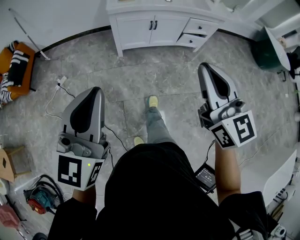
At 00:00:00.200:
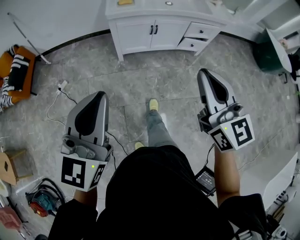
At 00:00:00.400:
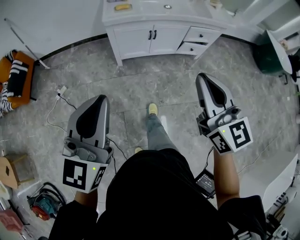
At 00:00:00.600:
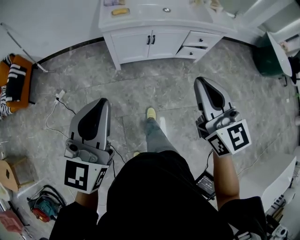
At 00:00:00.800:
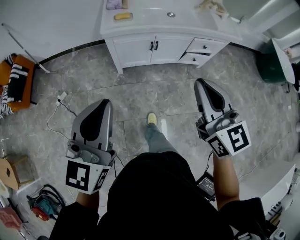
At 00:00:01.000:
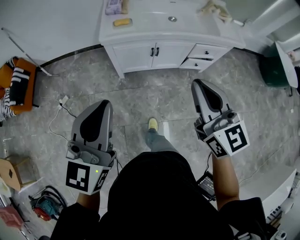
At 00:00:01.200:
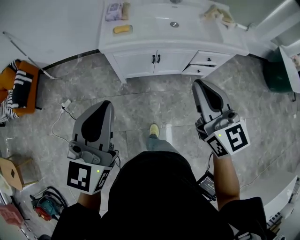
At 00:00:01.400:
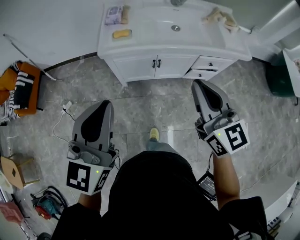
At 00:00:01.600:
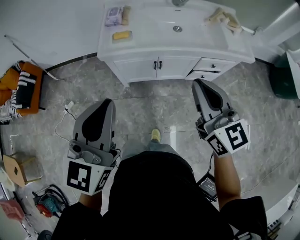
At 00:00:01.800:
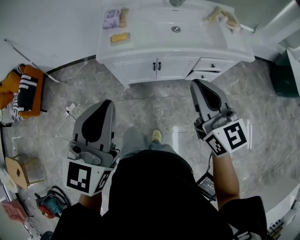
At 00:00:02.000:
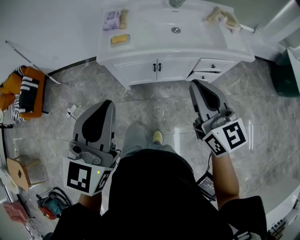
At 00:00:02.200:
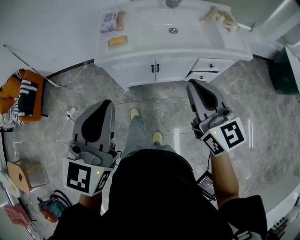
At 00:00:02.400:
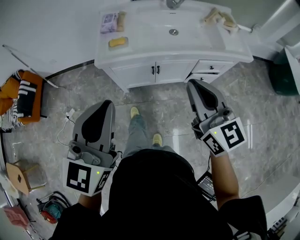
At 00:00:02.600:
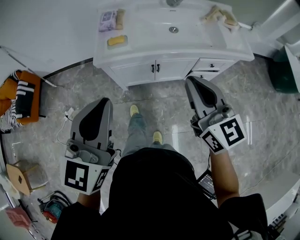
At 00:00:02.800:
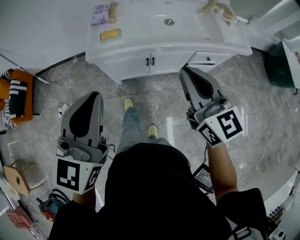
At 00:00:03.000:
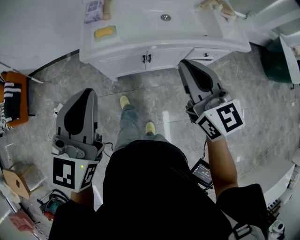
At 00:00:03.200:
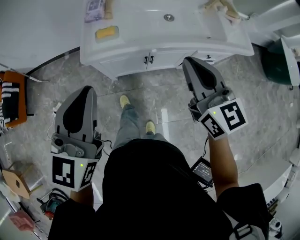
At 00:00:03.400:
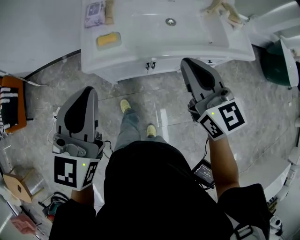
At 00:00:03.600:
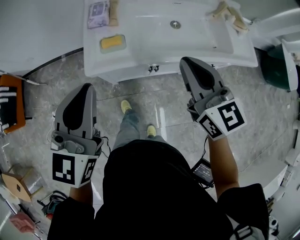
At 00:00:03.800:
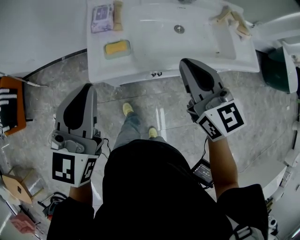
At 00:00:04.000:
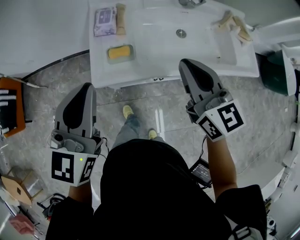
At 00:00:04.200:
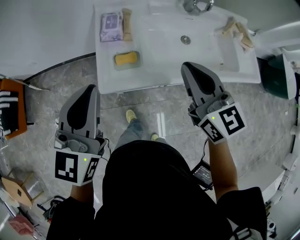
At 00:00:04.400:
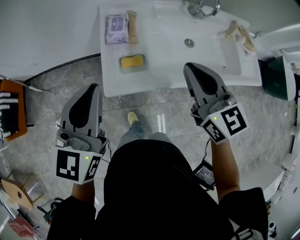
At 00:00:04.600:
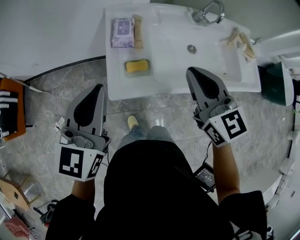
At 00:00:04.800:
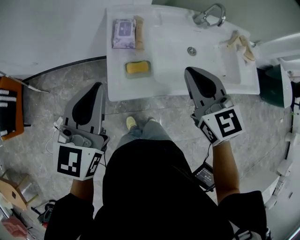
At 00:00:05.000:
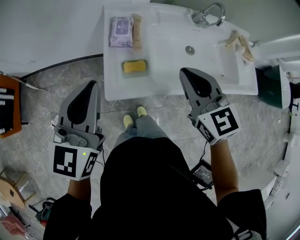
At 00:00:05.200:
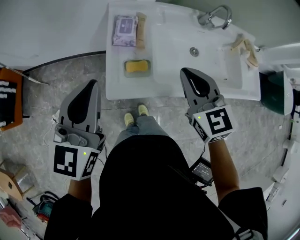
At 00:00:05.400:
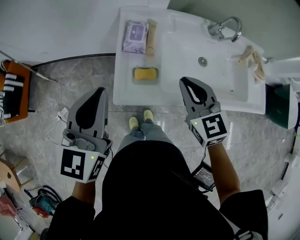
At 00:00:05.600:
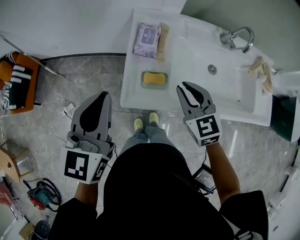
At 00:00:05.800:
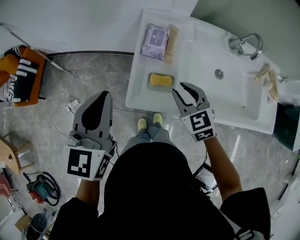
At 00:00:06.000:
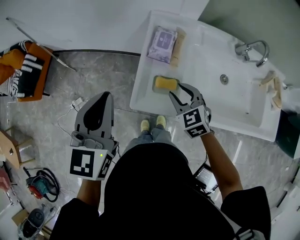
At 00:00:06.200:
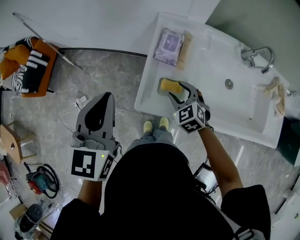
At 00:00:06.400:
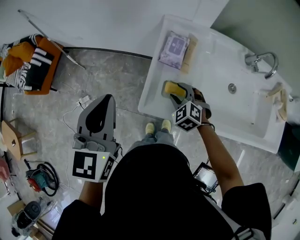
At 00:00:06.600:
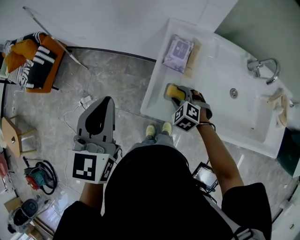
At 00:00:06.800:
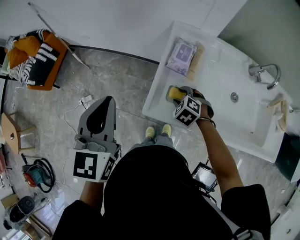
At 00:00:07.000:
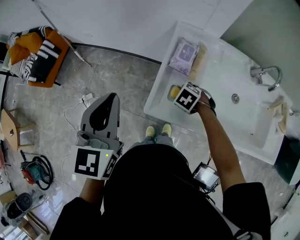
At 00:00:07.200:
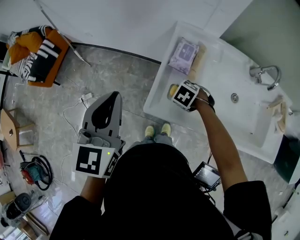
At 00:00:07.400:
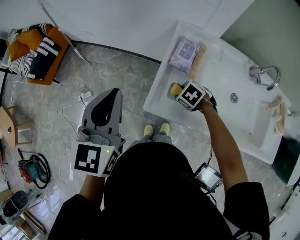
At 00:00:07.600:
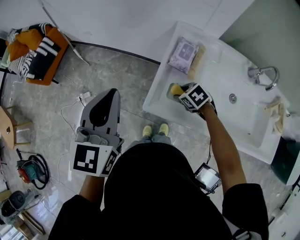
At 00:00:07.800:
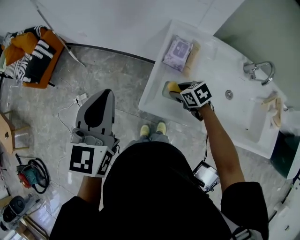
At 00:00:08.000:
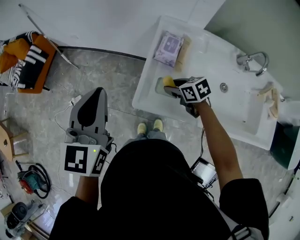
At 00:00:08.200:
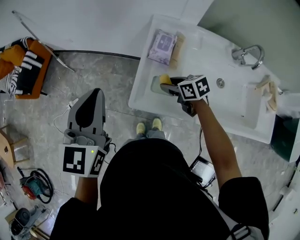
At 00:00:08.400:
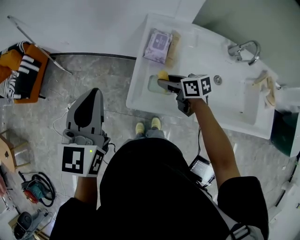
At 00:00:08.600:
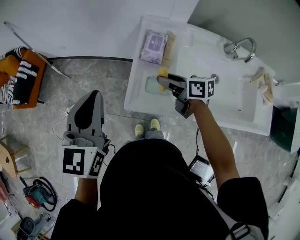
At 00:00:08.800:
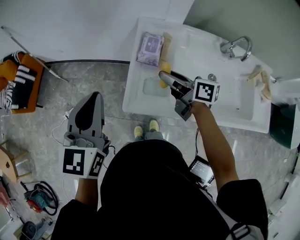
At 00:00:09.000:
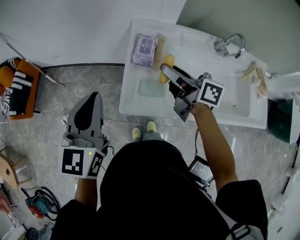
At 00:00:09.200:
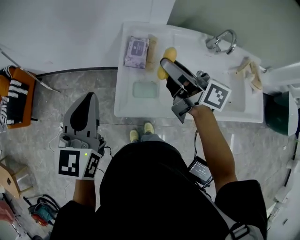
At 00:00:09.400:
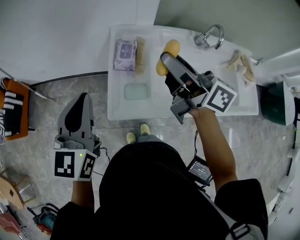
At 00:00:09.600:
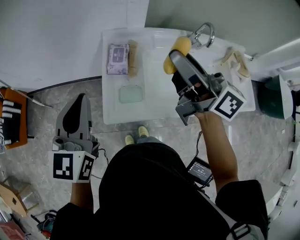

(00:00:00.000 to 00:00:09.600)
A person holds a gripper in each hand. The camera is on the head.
00:00:00.000 - 00:00:01.600: The two grippers go approximately 35 cm forward.
00:00:01.600 - 00:00:03.200: The two grippers go about 15 cm forward.
00:00:03.200 - 00:00:04.800: The two grippers go some 25 cm forward and to the left.
00:00:04.800 - 00:00:06.400: The left gripper shifts about 5 cm to the left, and swivels some 30 degrees. Meanwhile the right gripper is displaced downward by roughly 25 cm, tilts its fingers approximately 30 degrees downward, and opens up.
00:00:06.400 - 00:00:08.000: The right gripper rotates around the line of its fingers by roughly 40 degrees, clockwise from behind.
00:00:08.000 - 00:00:09.600: The left gripper moves roughly 10 cm. Meanwhile the right gripper moves upward, some 35 cm, and angles its fingers upward, by about 60 degrees.

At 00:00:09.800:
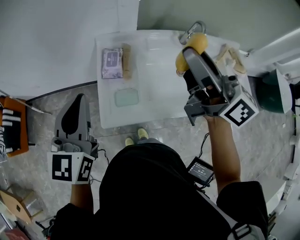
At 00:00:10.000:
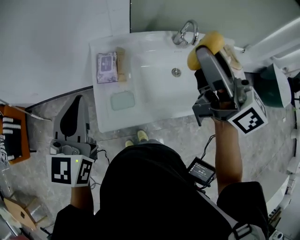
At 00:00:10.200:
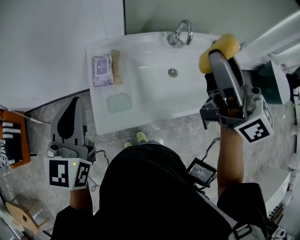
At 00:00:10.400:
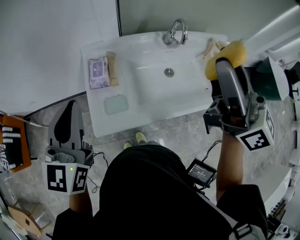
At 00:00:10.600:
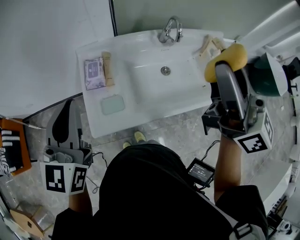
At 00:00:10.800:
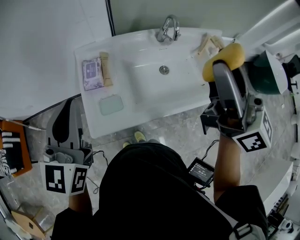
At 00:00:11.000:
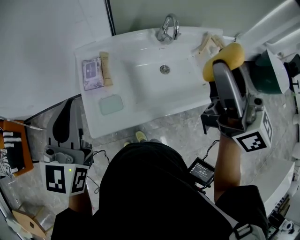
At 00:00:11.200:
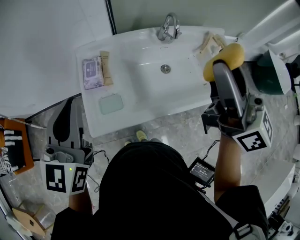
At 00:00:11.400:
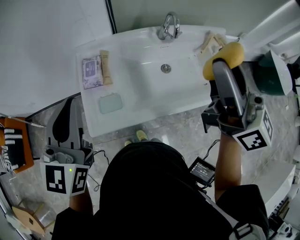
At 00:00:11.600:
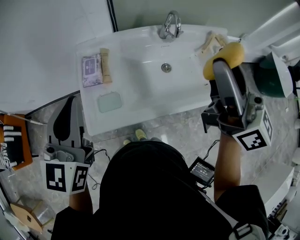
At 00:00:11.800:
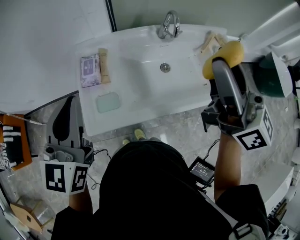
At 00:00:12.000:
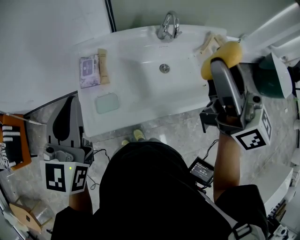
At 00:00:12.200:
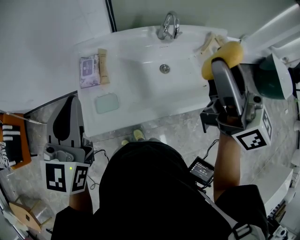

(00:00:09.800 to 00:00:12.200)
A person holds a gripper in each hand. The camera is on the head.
00:00:09.800 - 00:00:11.000: The right gripper moves to the right, backward and upward, about 15 cm, and turns by about 20 degrees, while the left gripper is displaced to the right by roughly 5 cm.
00:00:11.000 - 00:00:12.200: The grippers make only small movements.

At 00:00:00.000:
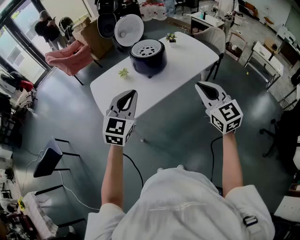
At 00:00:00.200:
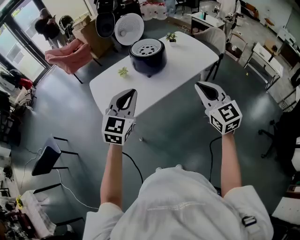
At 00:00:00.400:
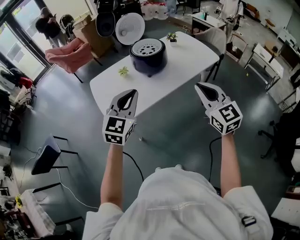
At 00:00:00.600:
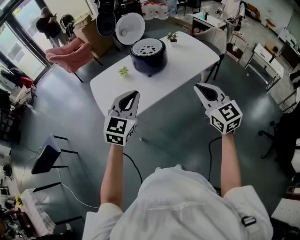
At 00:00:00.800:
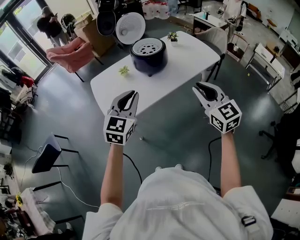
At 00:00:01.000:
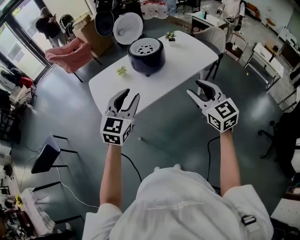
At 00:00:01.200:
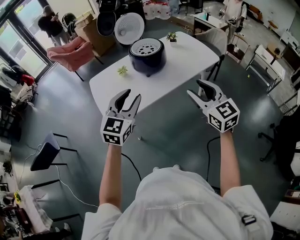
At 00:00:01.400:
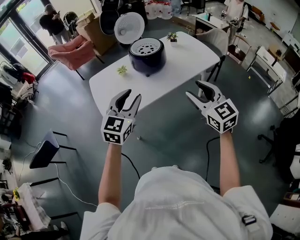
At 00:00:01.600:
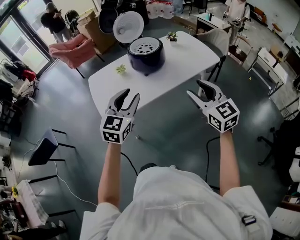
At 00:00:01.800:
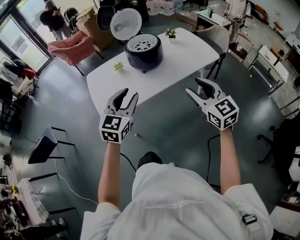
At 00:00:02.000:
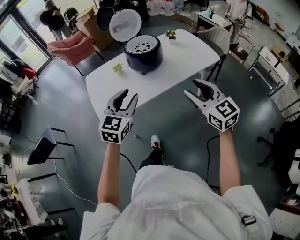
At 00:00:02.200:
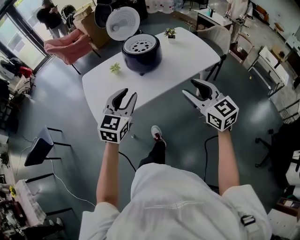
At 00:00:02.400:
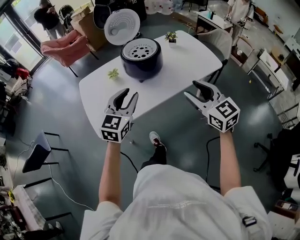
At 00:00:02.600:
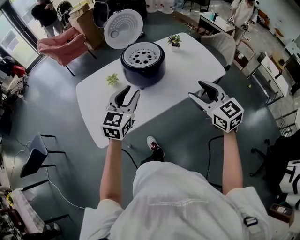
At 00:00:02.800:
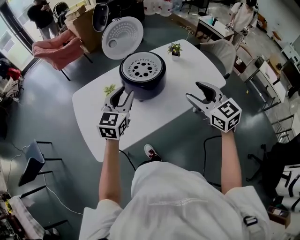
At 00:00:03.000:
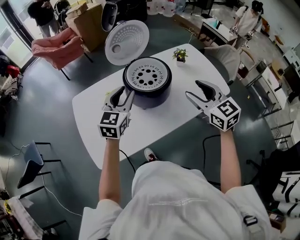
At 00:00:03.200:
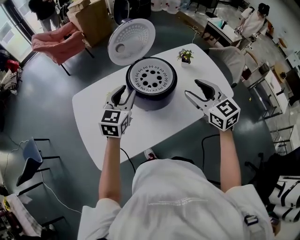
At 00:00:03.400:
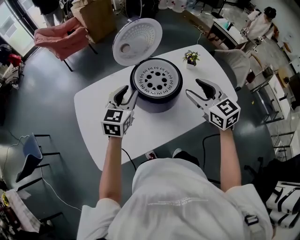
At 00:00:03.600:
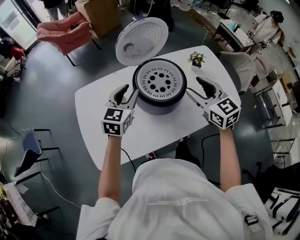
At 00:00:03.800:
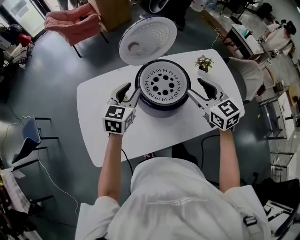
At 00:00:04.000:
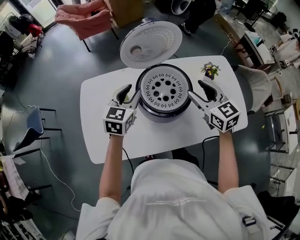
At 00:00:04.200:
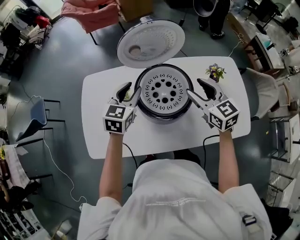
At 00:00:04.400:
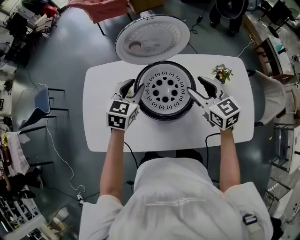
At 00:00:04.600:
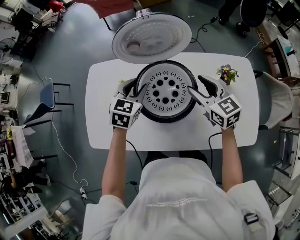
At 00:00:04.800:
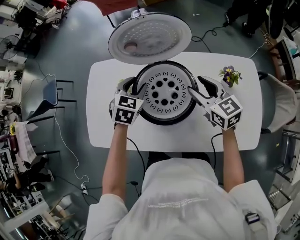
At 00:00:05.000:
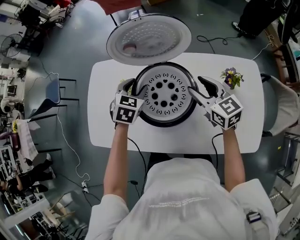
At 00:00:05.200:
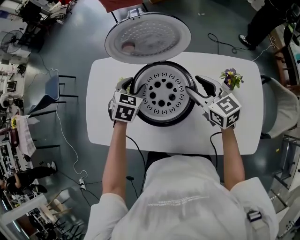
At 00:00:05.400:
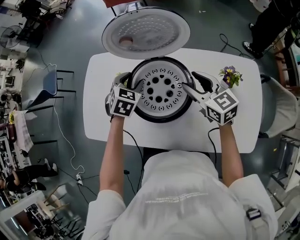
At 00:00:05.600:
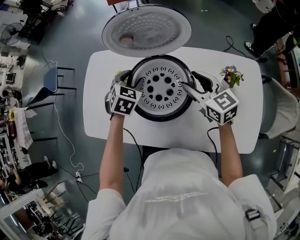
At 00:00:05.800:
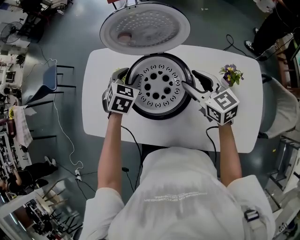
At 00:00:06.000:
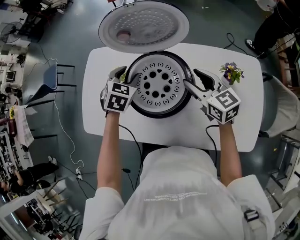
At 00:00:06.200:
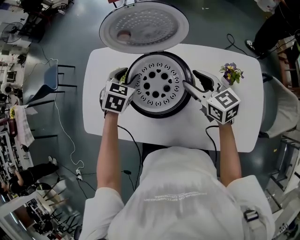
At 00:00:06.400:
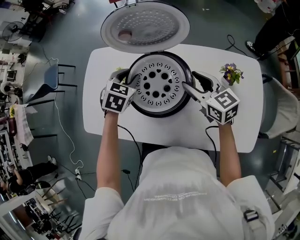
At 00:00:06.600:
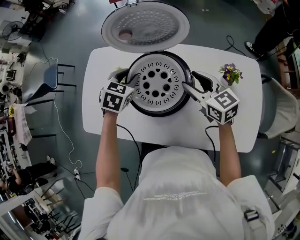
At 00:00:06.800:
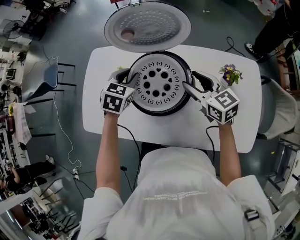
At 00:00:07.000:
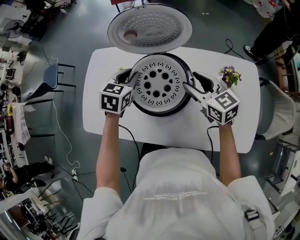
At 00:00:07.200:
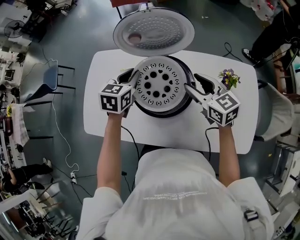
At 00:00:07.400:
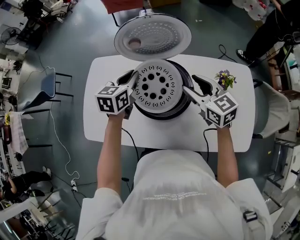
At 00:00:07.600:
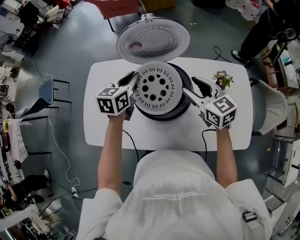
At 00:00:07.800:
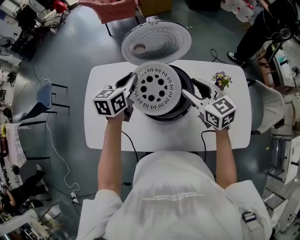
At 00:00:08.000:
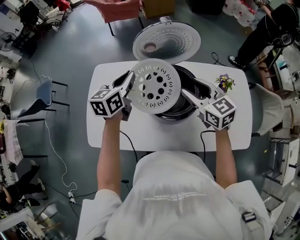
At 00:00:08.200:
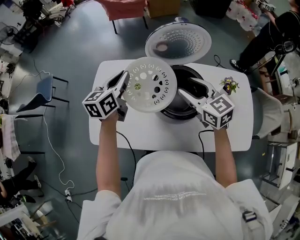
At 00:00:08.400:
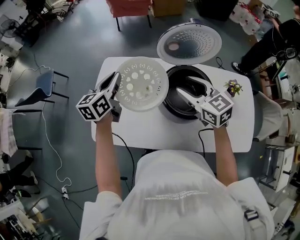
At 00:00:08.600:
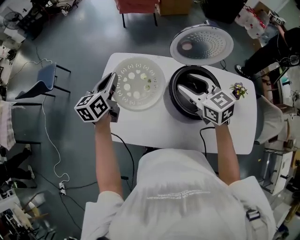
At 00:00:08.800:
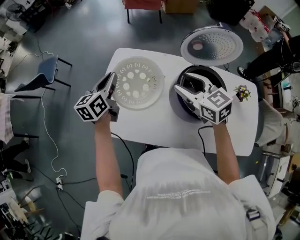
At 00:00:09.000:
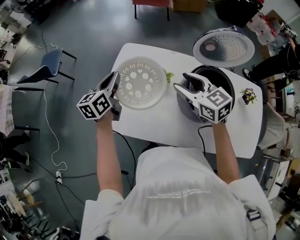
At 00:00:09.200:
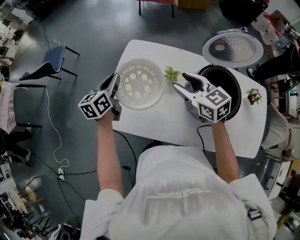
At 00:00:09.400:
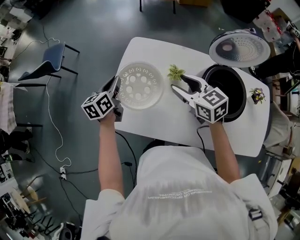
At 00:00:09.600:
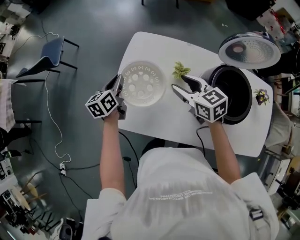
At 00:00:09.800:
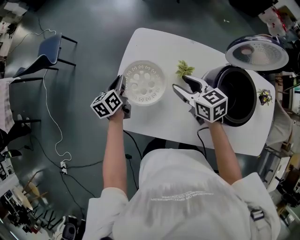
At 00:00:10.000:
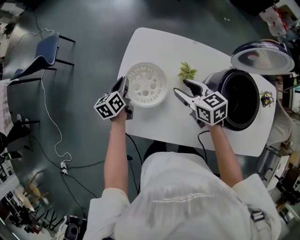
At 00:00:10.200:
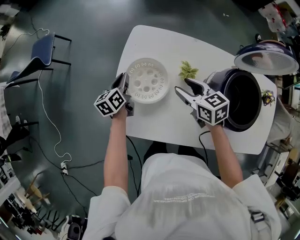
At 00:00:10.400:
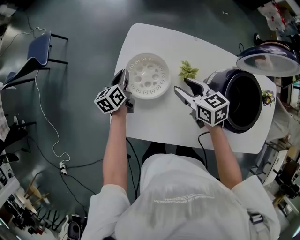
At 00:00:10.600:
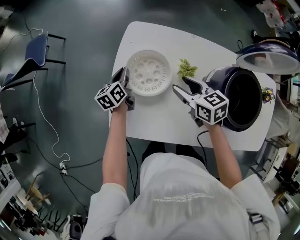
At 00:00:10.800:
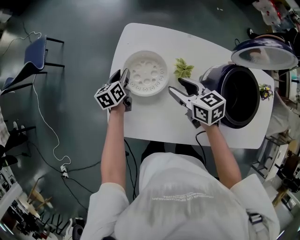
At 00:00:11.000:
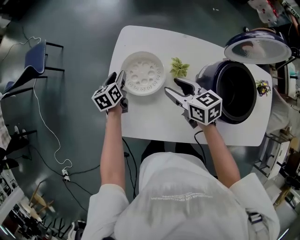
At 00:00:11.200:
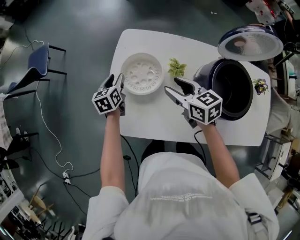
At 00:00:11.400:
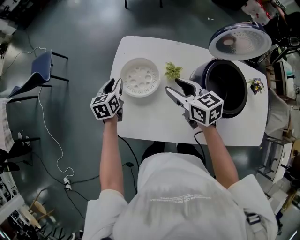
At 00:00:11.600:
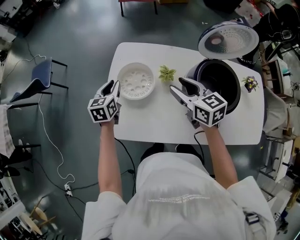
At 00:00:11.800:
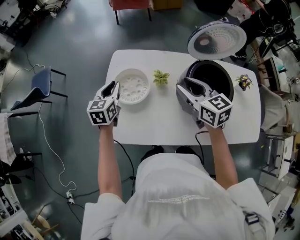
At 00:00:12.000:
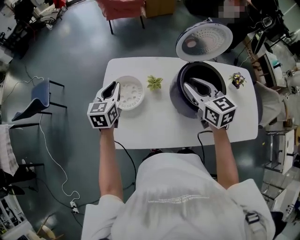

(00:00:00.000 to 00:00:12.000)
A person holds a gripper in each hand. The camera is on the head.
00:00:00.000 - 00:00:01.600: The left gripper opens its fingers; the right gripper opens its fingers.
00:00:01.600 - 00:00:03.000: The grippers both shift forward by approximately 35 cm.
00:00:03.000 - 00:00:04.400: The right gripper goes approximately 25 cm forward and downward, and turns by some 30 degrees. The left gripper is displaced forward and downward by about 15 cm, and changes its angle by about 30 degrees.
00:00:04.400 - 00:00:06.000: The right gripper moves approximately 5 cm; the left gripper moves downward, approximately 5 cm, and swivels approximately 30 degrees.
00:00:06.000 - 00:00:07.600: The left gripper moves some 5 cm, rotates approximately 40 degrees, and closes up.
00:00:07.600 - 00:00:09.000: Both grippers move to the left, about 25 cm. The left gripper swivels approximately 30 degrees.
00:00:09.000 - 00:00:10.400: The left gripper shifts approximately 20 cm downward, while the right gripper moves downward and to the left, about 15 cm, and swivels some 20 degrees.
00:00:10.400 - 00:00:12.000: The right gripper moves upward, to the right and backward, roughly 25 cm, rotates about 30 degrees, and closes up; the left gripper heads upward and to the right, covering about 20 cm, swivels roughly 40 degrees, and opens, then closes again.
